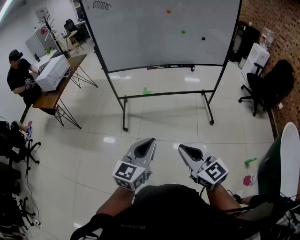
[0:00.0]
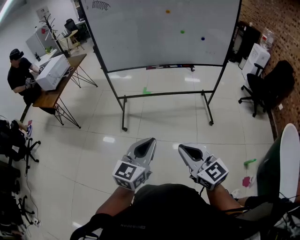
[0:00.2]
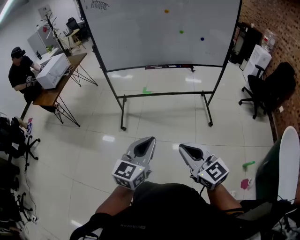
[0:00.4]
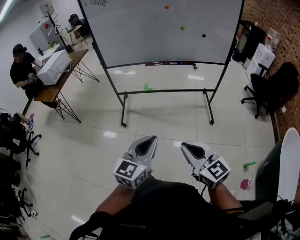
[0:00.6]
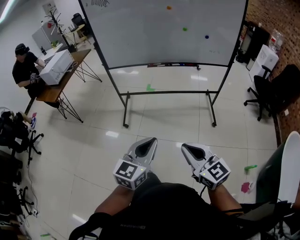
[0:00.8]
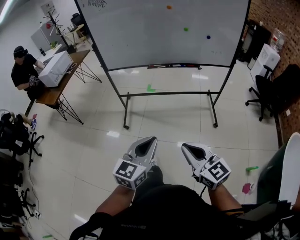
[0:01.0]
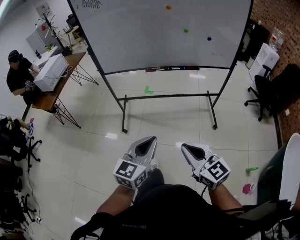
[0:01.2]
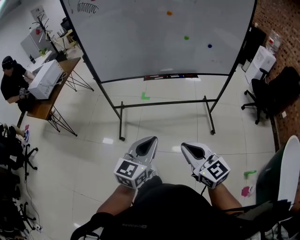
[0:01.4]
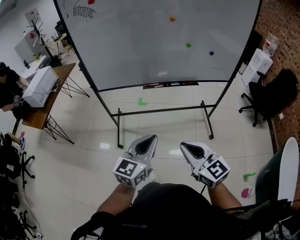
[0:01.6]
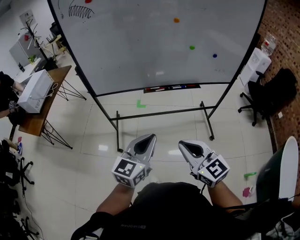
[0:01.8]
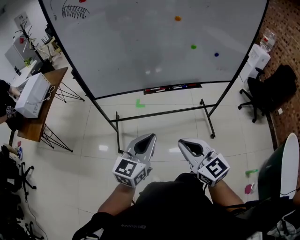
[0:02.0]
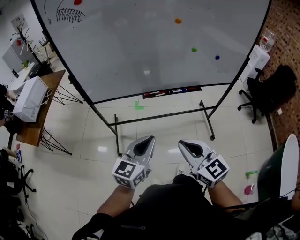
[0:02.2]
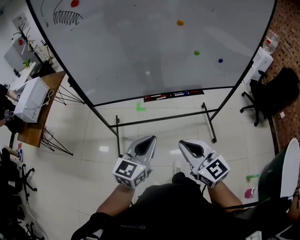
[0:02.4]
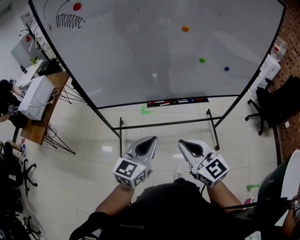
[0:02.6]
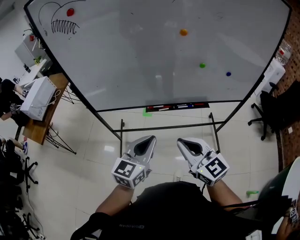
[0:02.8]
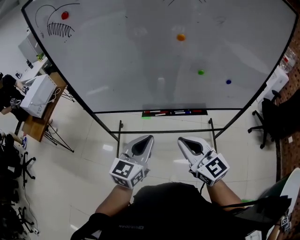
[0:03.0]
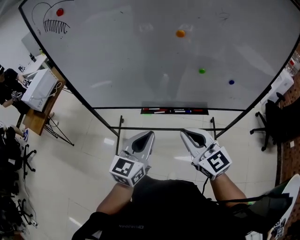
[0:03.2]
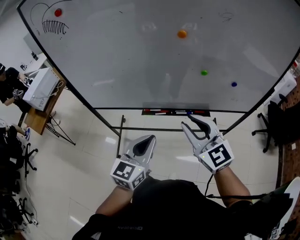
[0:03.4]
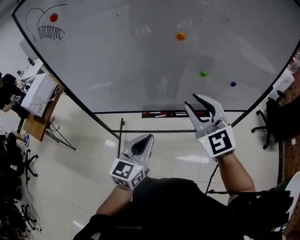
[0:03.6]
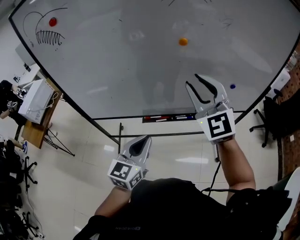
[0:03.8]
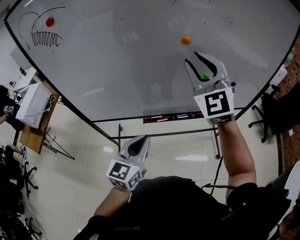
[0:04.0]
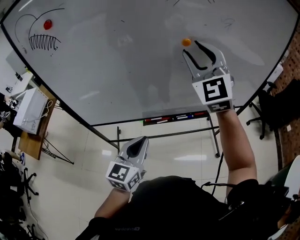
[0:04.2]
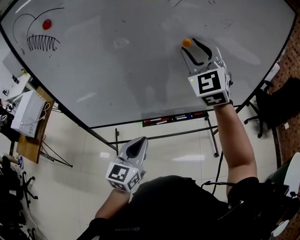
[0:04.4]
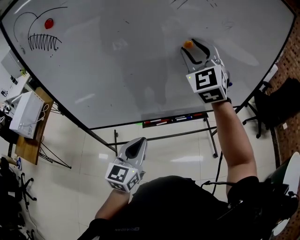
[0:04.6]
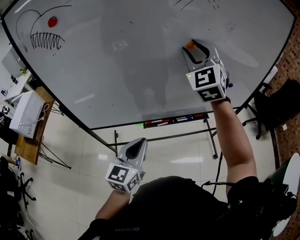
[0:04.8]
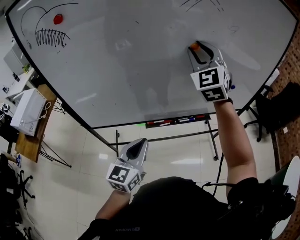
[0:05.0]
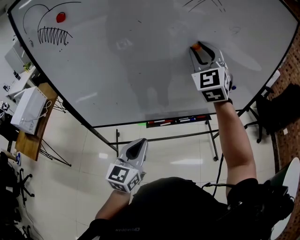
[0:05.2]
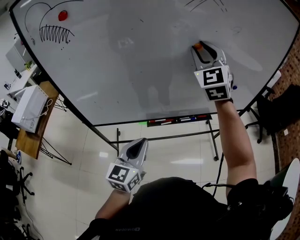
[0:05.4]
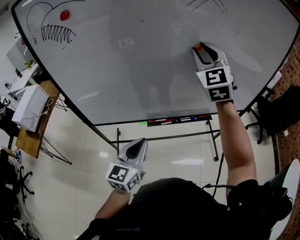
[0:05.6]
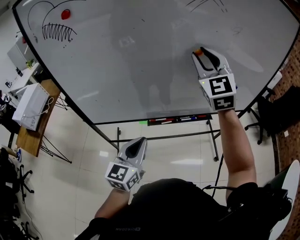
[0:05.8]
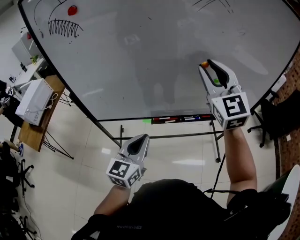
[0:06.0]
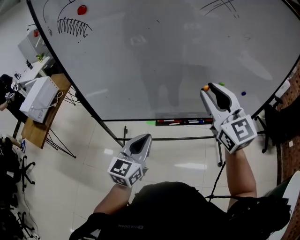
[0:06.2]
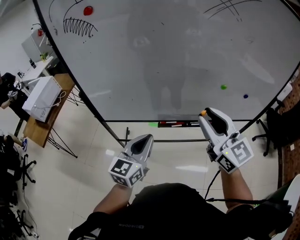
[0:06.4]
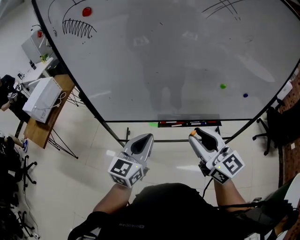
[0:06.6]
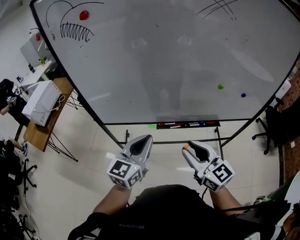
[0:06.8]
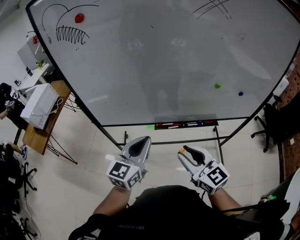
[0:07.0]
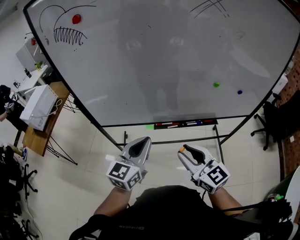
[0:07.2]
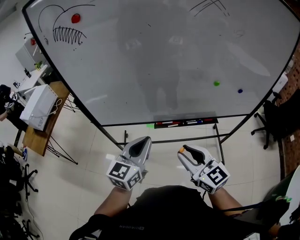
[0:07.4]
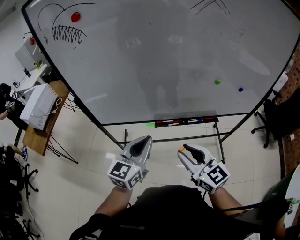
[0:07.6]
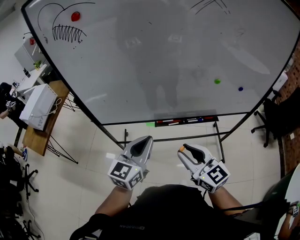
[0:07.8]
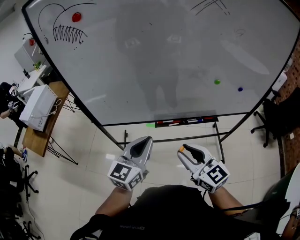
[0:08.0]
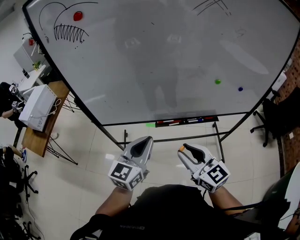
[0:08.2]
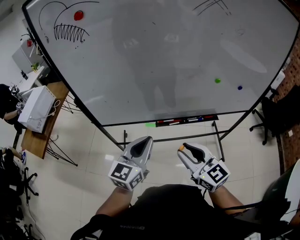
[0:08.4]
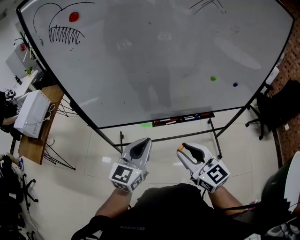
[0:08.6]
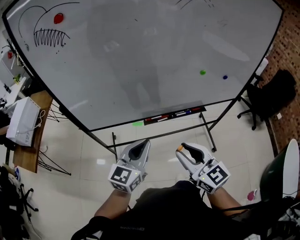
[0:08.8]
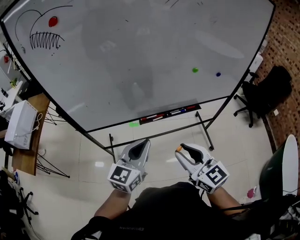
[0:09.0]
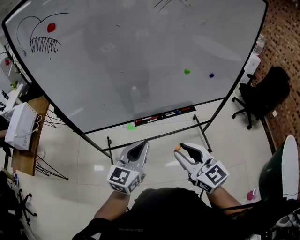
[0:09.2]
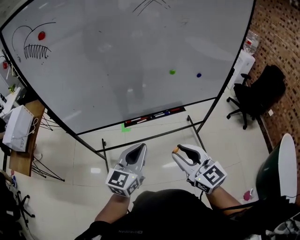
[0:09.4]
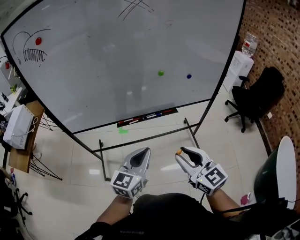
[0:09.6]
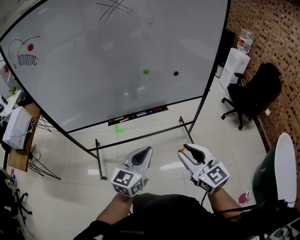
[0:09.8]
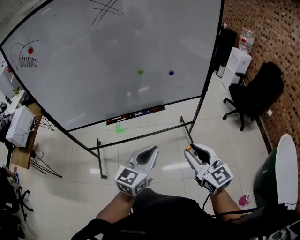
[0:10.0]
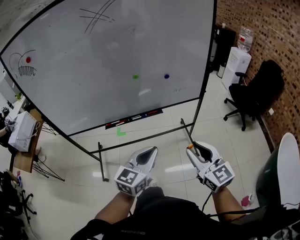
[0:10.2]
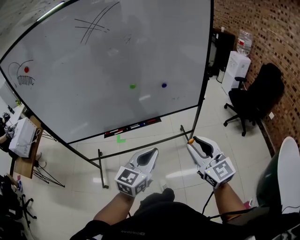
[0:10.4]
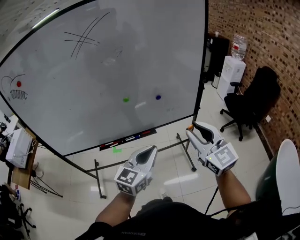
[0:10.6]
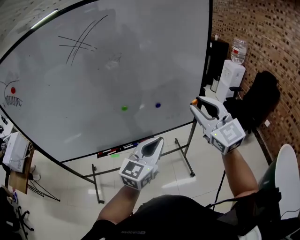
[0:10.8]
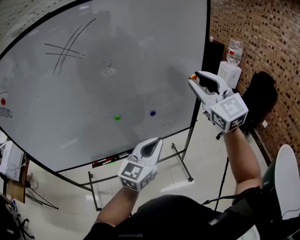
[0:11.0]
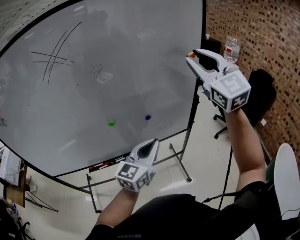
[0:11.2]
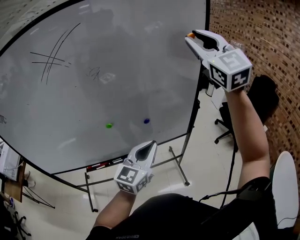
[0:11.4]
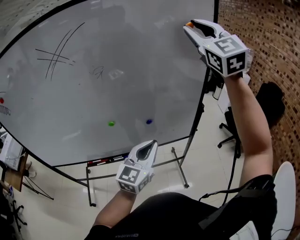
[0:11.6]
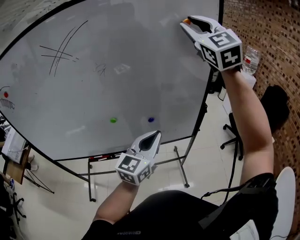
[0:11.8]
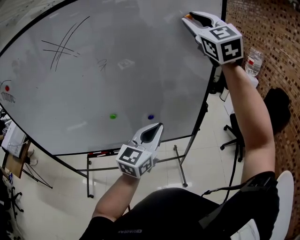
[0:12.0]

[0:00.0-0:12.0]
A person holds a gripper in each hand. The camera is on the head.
0:00.0 to 0:01.6: Both grippers move forward, approximately 25 cm.
0:01.6 to 0:03.0: The grippers both shift forward by about 25 cm.
0:03.0 to 0:04.4: The right gripper heads forward and upward, covering approximately 35 cm, turns by approximately 60 degrees, and opens. The left gripper heads forward and to the left, covering about 10 cm.
0:04.4 to 0:06.0: The right gripper travels backward by approximately 5 cm.
0:06.0 to 0:07.6: The right gripper travels downward and backward by roughly 30 cm, and changes its angle by approximately 40 degrees.
0:07.6 to 0:09.0: The grippers stay close to where they were, moving slightly.
0:09.0 to 0:10.4: Both grippers travel together to the right, about 35 cm.
0:10.4 to 0:12.0: The right gripper shifts roughly 60 cm forward and upward, and rotates some 30 degrees. Meanwhile the left gripper is displaced forward and upward by roughly 30 cm.

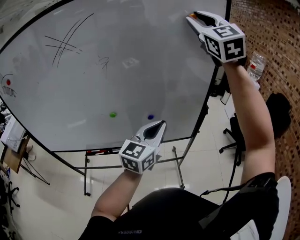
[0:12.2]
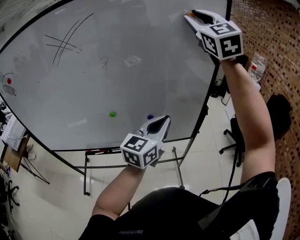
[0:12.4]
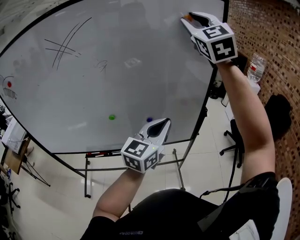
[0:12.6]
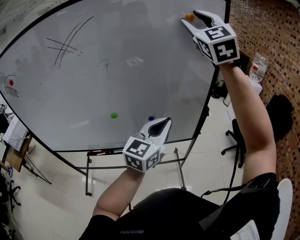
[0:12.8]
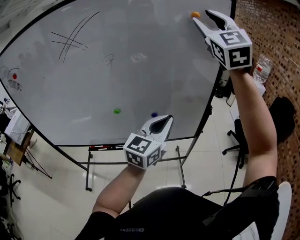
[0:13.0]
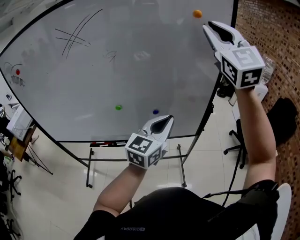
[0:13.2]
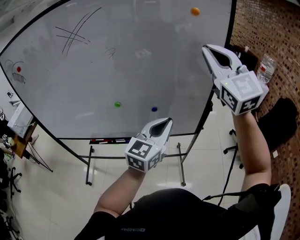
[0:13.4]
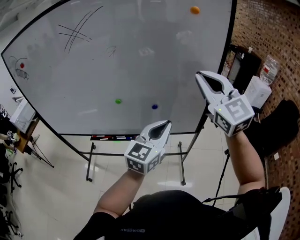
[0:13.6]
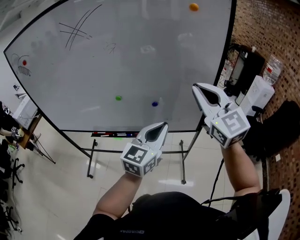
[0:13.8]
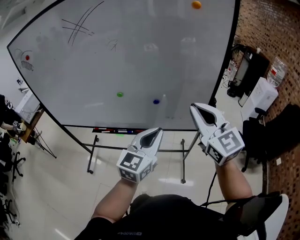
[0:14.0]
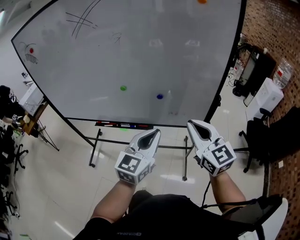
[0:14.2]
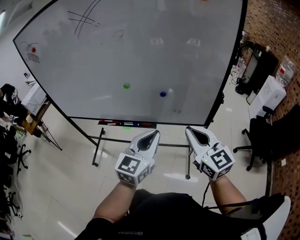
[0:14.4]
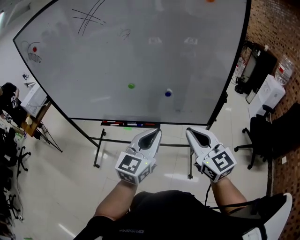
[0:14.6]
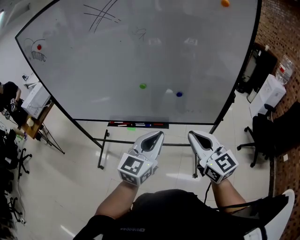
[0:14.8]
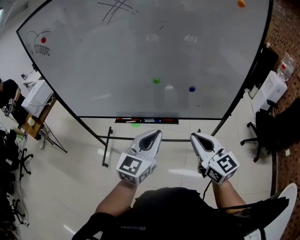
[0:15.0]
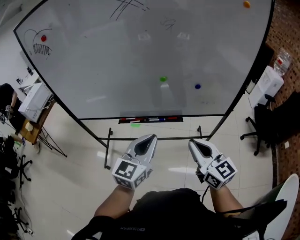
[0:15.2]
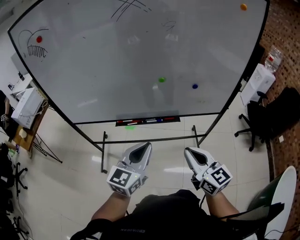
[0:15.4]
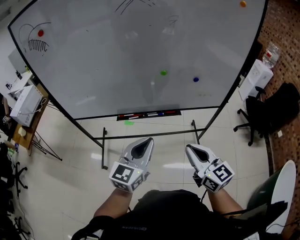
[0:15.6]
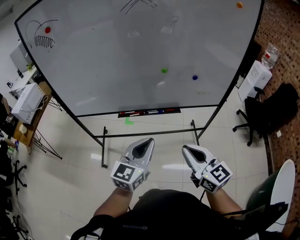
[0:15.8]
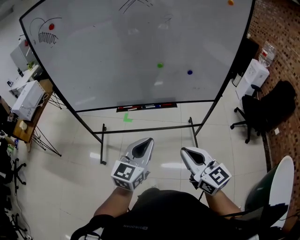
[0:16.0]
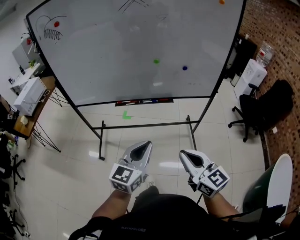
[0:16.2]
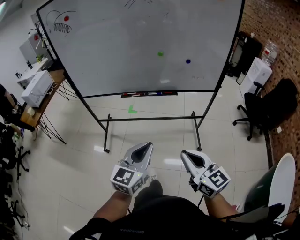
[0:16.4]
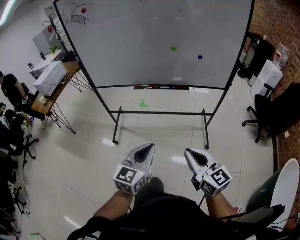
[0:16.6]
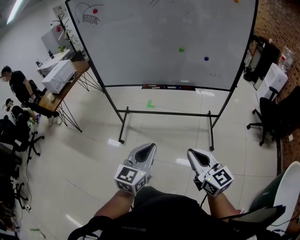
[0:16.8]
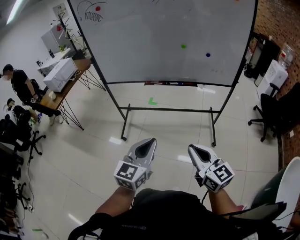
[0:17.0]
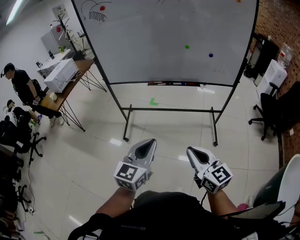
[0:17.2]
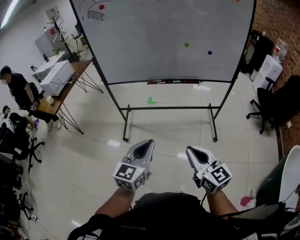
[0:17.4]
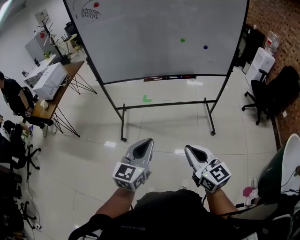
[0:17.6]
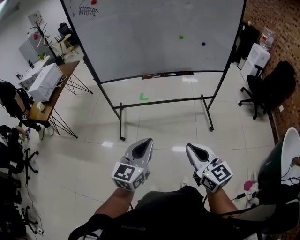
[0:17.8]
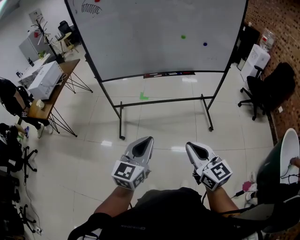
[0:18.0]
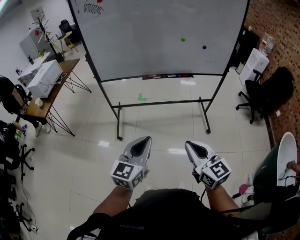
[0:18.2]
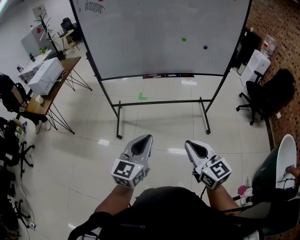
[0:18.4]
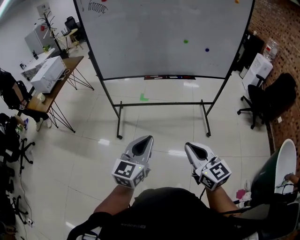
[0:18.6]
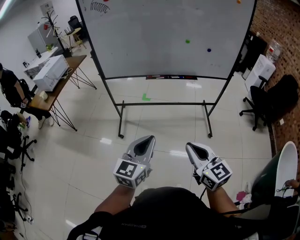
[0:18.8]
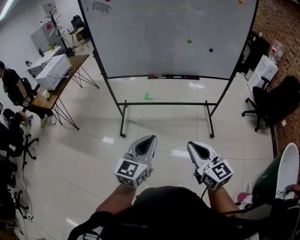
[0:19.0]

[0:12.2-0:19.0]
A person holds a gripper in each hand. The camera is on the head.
0:12.2 to 0:13.6: The right gripper travels downward and backward by some 20 cm, rotates about 20 degrees, and closes up.
0:13.6 to 0:15.0: The right gripper moves downward, to the left and backward, approximately 30 cm, and turns by some 30 degrees. The left gripper travels to the left by approximately 20 cm.
0:15.0 to 0:16.2: Both grippers move backward and to the left, approximately 25 cm.
0:16.2 to 0:17.6: The two grippers go approximately 25 cm to the left and backward.
0:17.6 to 0:19.0: The grippers make only small movements.

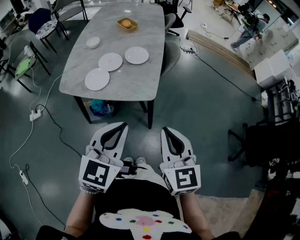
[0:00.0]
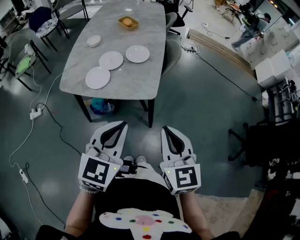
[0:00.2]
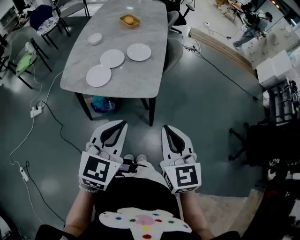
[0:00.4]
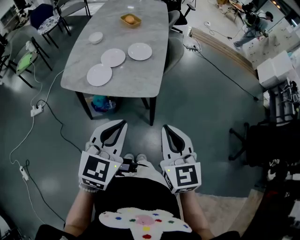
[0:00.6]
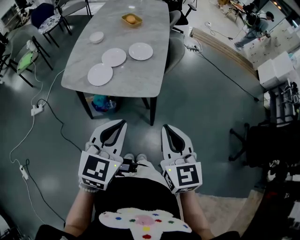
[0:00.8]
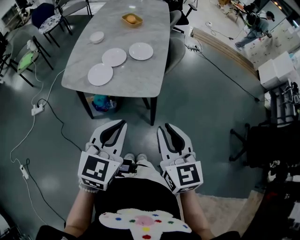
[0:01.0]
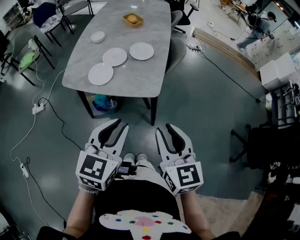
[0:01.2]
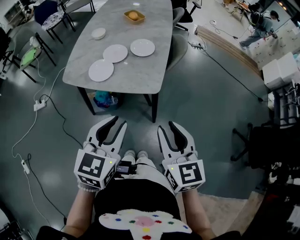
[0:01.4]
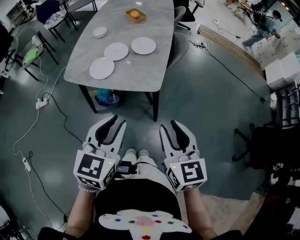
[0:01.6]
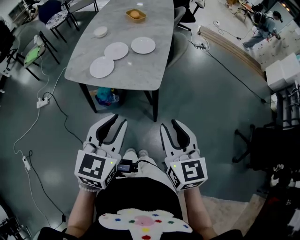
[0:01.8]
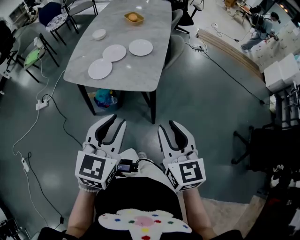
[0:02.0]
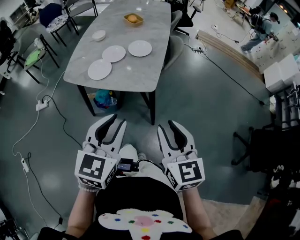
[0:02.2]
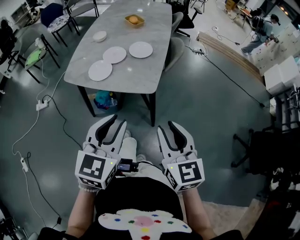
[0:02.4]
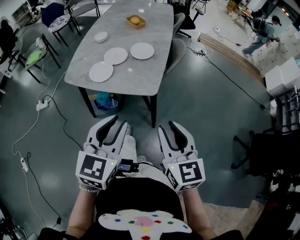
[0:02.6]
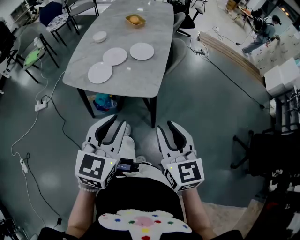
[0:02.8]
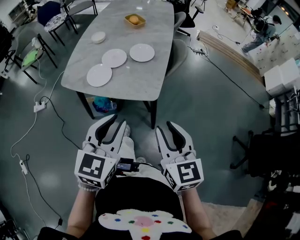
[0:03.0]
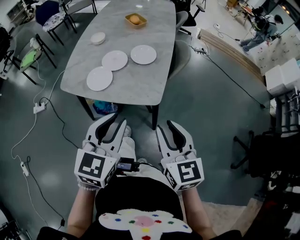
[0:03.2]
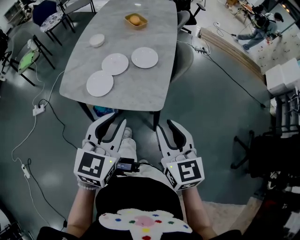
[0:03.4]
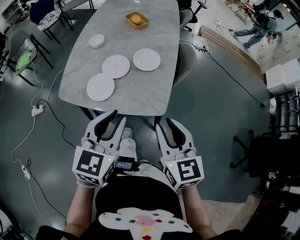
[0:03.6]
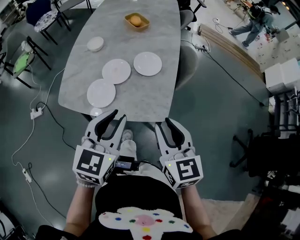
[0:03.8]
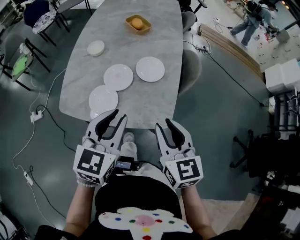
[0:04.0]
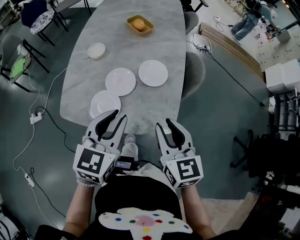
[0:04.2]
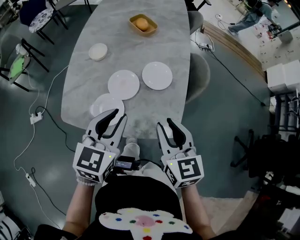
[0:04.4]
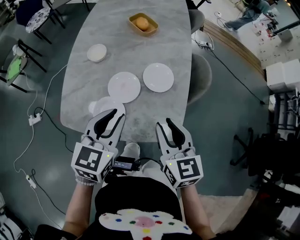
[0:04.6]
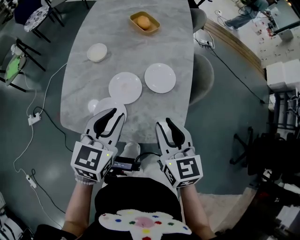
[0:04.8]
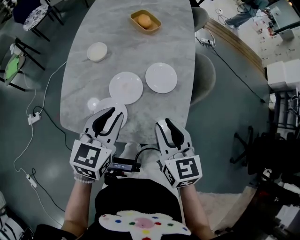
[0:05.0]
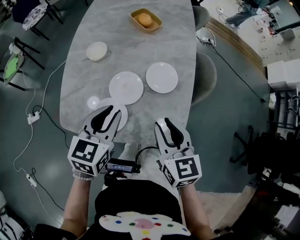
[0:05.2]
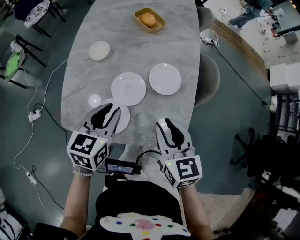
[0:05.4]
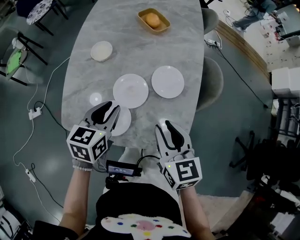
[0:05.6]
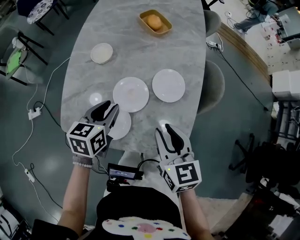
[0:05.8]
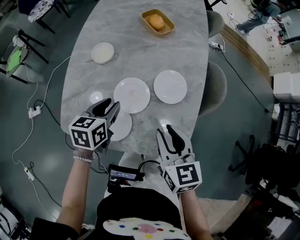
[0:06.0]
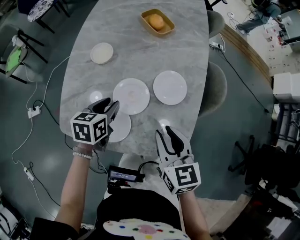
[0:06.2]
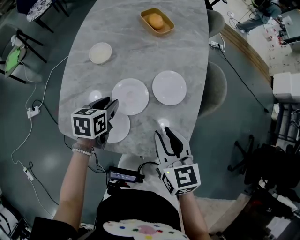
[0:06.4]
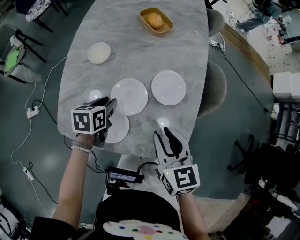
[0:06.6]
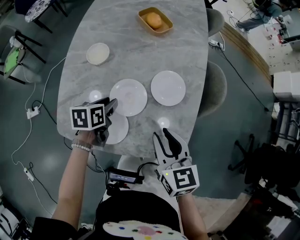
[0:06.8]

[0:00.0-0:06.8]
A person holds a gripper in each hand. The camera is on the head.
0:00.0 to 0:01.4: The right gripper opens; the left gripper opens its fingers.
0:01.4 to 0:02.8: The grippers stay close to where they were, moving slightly.
0:02.8 to 0:04.0: Both grippers travel together forward and to the left, some 20 cm.
0:04.0 to 0:05.4: The grippers both shift forward, to the left and downward by approximately 15 cm.
0:05.4 to 0:06.8: The left gripper shifts some 15 cm downward and forward, and turns by roughly 30 degrees.
